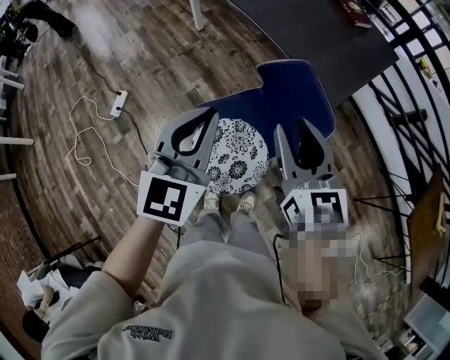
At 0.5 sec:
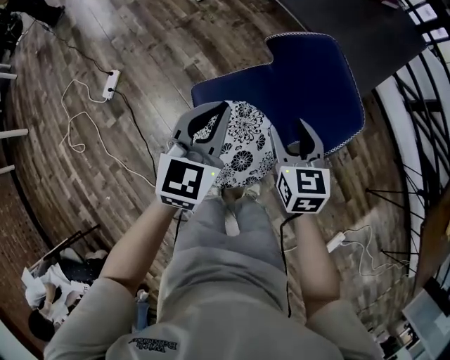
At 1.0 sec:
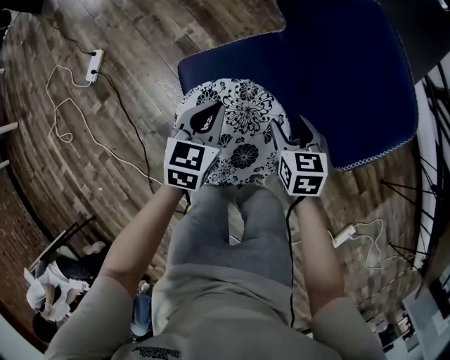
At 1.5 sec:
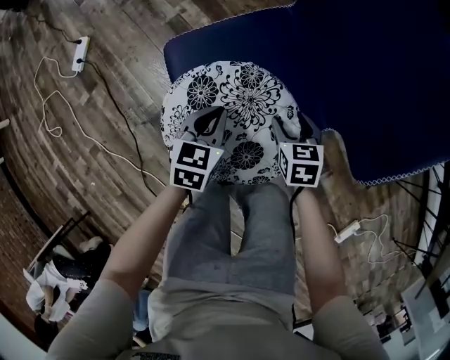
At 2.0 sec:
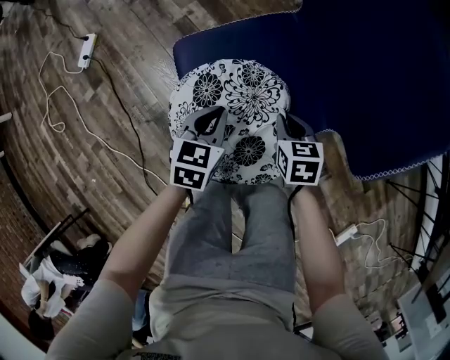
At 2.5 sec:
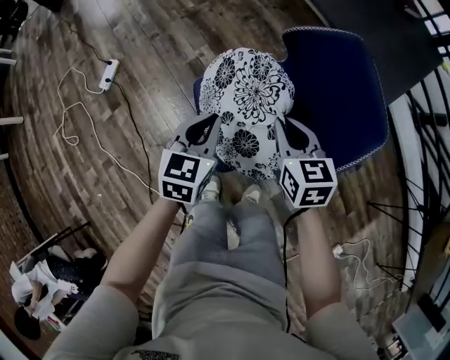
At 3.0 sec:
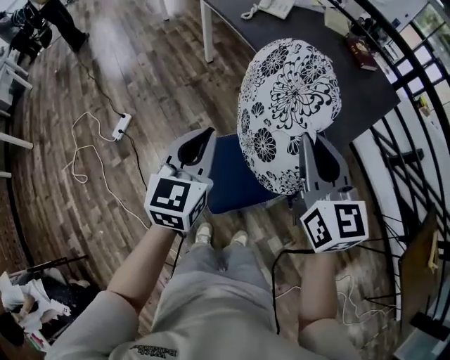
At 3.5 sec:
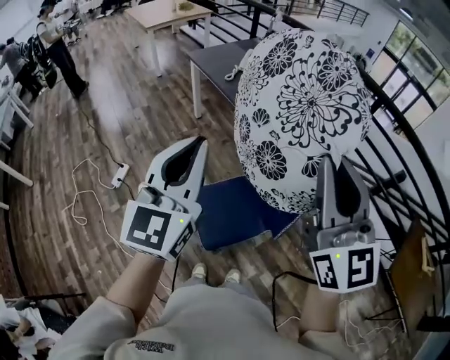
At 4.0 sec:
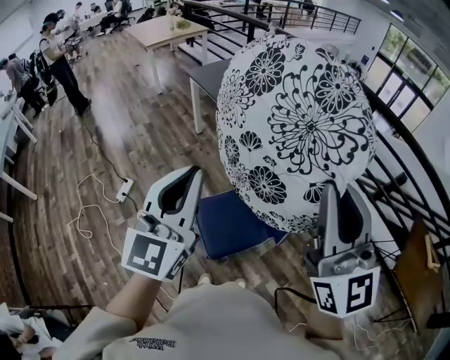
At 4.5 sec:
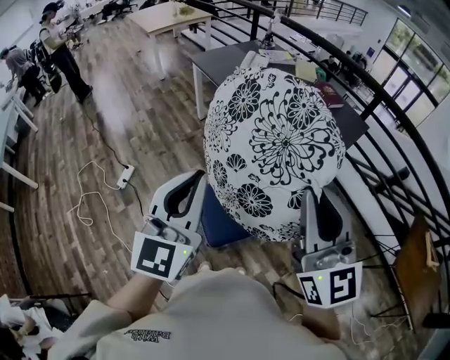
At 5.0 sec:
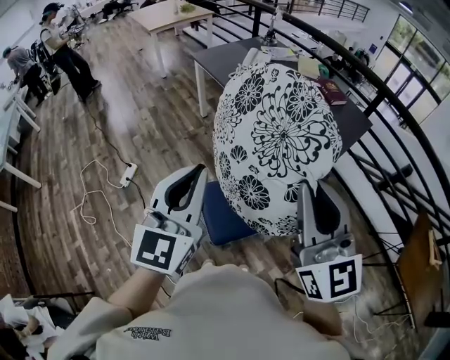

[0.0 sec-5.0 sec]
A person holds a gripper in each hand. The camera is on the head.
0.0 sec to 2.5 sec: The grippers both shift downward by some 35 cm. The left gripper turns by approximately 30 degrees. The right gripper rotates some 20 degrees, and closes.
2.5 sec to 5.0 sec: The grippers both shift upward by some 60 cm. The left gripper tilts its fingers roughly 30 degrees upward; the right gripper tilts its fingers some 40 degrees upward.
